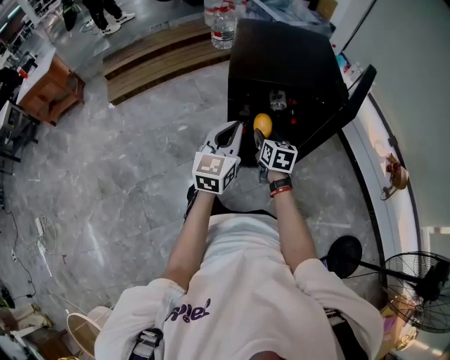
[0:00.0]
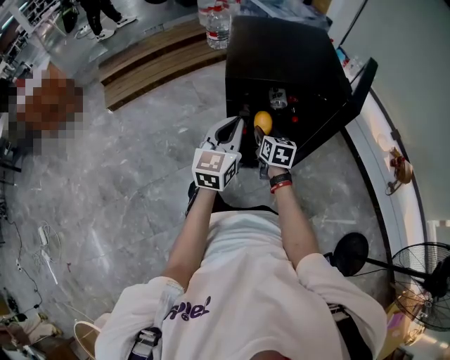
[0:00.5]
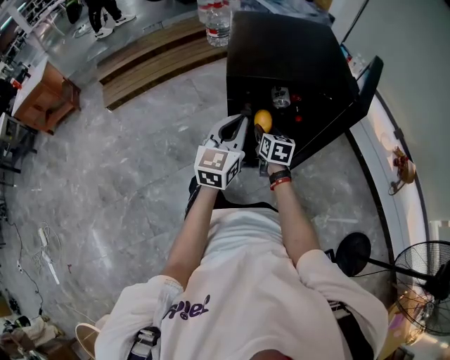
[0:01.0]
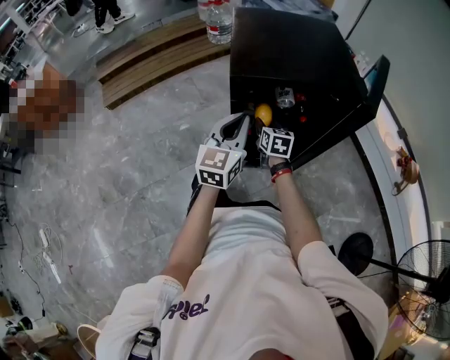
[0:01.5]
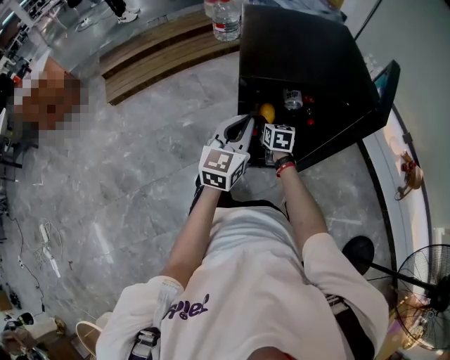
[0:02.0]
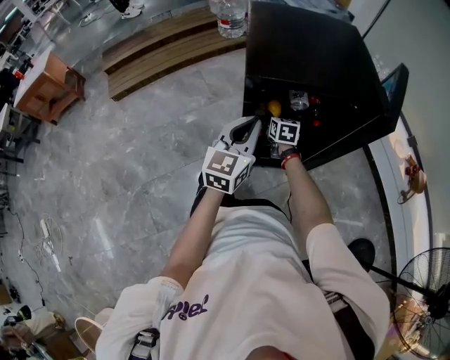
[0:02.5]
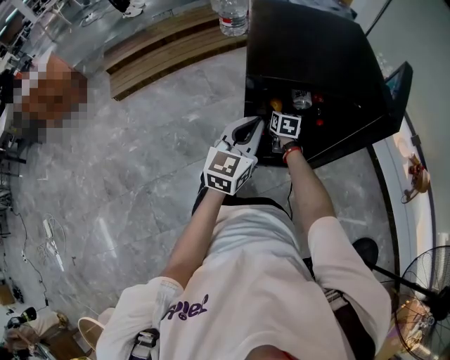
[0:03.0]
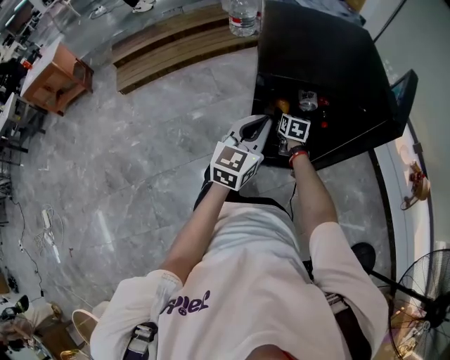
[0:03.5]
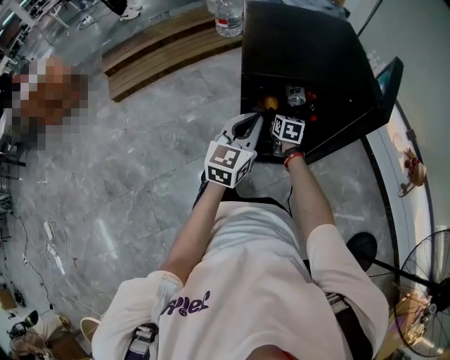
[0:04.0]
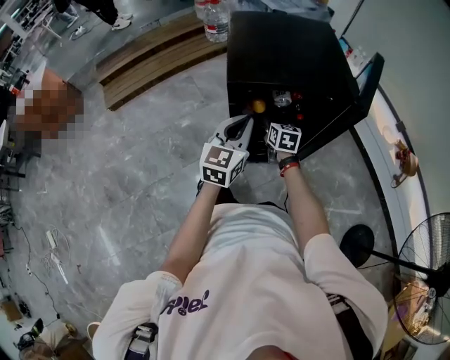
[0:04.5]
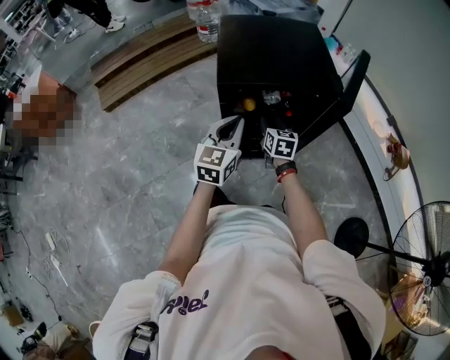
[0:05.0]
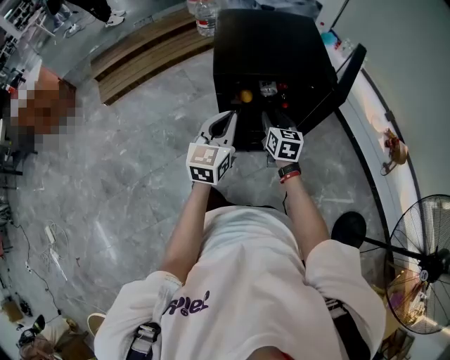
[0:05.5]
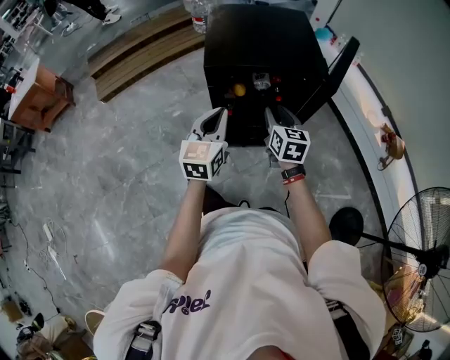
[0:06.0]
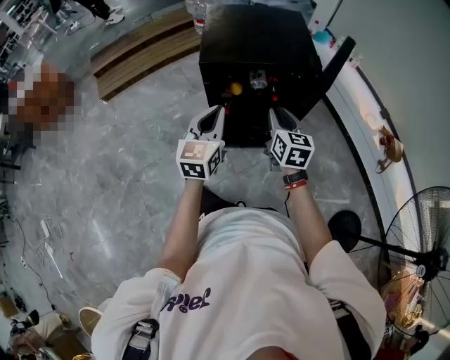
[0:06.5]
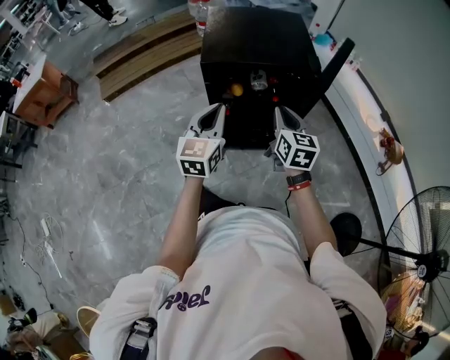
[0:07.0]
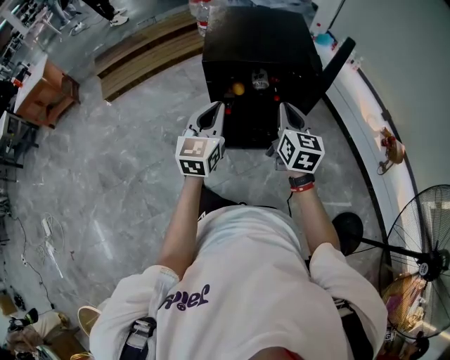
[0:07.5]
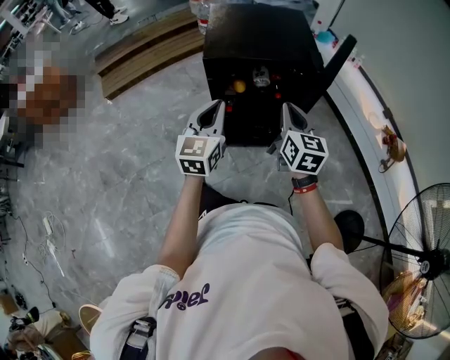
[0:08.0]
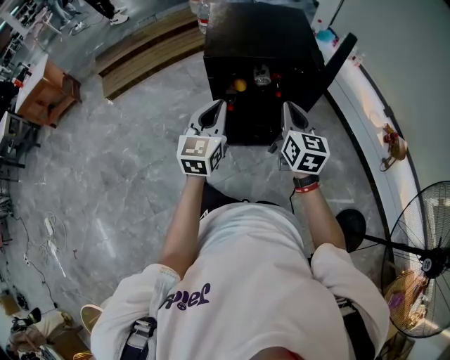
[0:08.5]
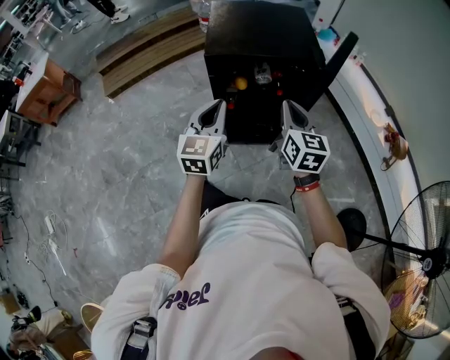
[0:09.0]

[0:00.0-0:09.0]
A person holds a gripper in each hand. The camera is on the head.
0:00.0 to 0:02.0: The left gripper moves forward and downward, some 10 cm. The right gripper travels forward and downward by roughly 20 cm.
0:02.0 to 0:04.5: The right gripper goes approximately 5 cm upward, while the left gripper changes place by about 5 cm.
0:04.5 to 0:07.0: The right gripper is displaced upward, backward and to the right by some 30 cm, and closes. Meanwhile the left gripper moves backward and upward, some 10 cm.
0:07.0 to 0:09.0: There are only small adjustments of the grippers.

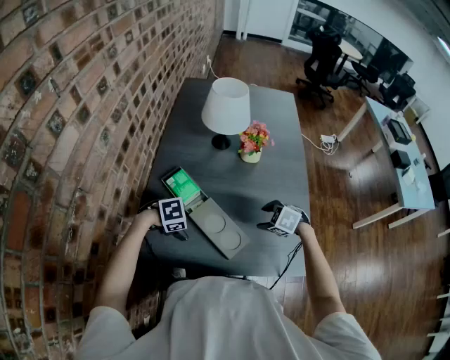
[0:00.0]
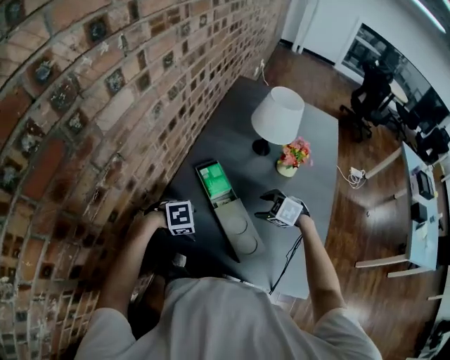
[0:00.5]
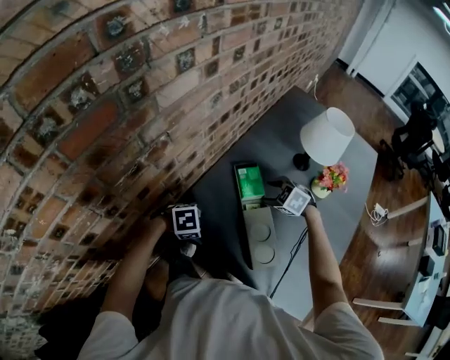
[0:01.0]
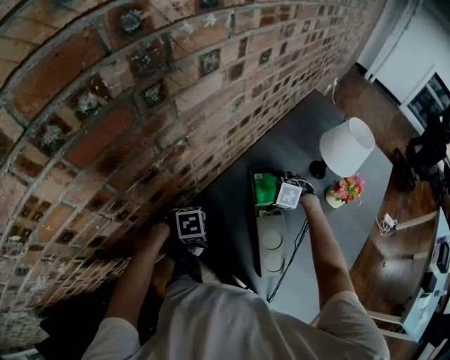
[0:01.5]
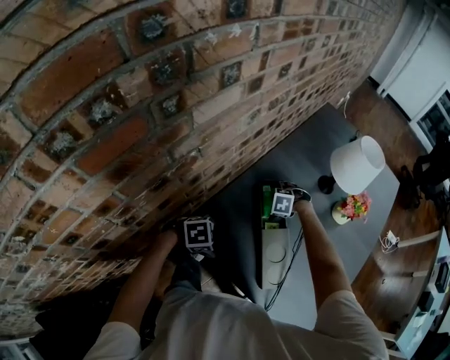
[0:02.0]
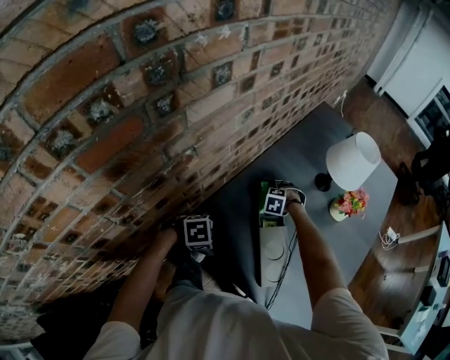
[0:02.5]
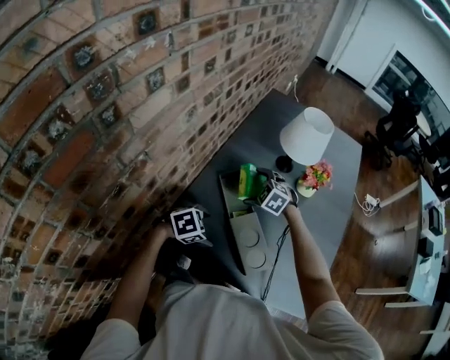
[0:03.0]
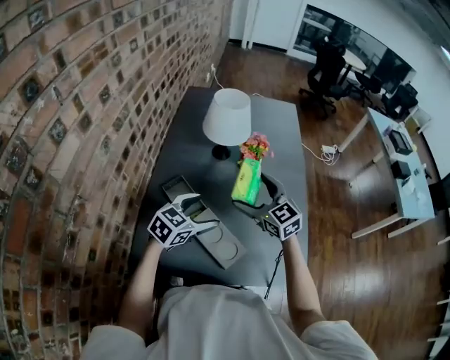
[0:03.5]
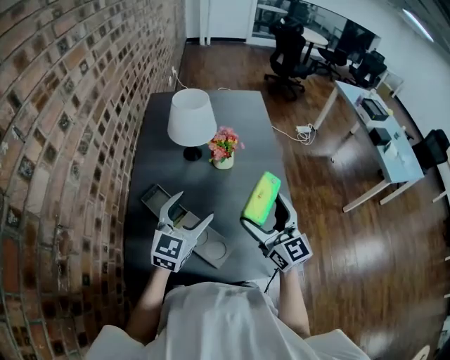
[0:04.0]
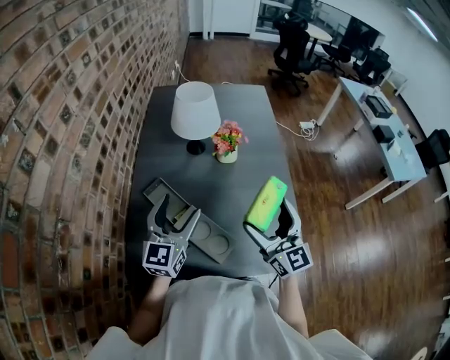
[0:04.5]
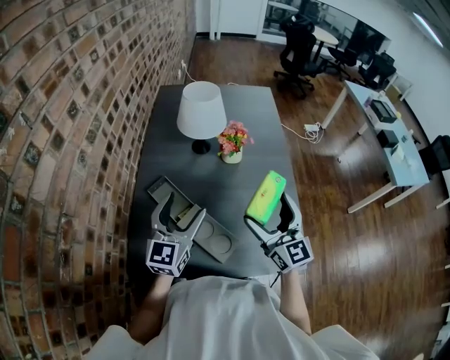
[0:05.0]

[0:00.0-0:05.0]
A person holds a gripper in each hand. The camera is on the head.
0:00.0 to 0:02.5: The right gripper moves roughly 35 cm, rolls counterclockwise, seen from behind, by some 50 degrees, and opens up, while the left gripper moves approximately 15 cm, and swivels about 30 degrees.
0:02.5 to 0:05.0: The right gripper changes place by approximately 50 cm, and tips its fingers upward by about 80 degrees; the left gripper travels upward by approximately 25 cm, and points its fingers some 60 degrees further upward.

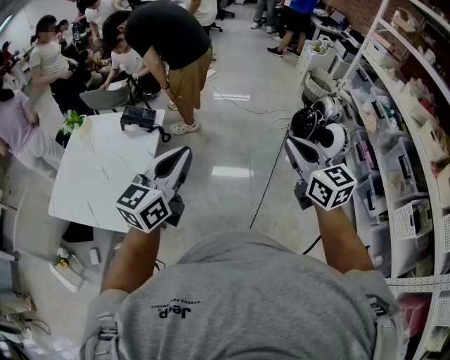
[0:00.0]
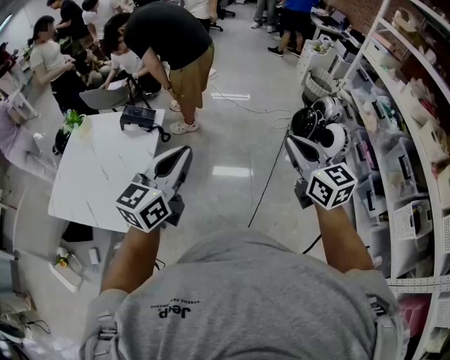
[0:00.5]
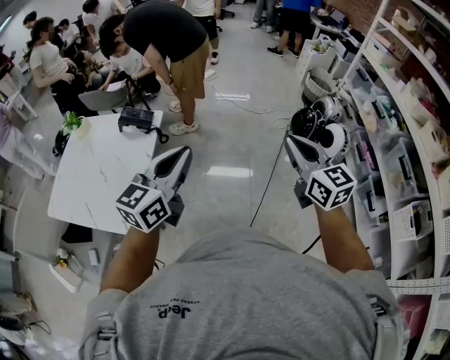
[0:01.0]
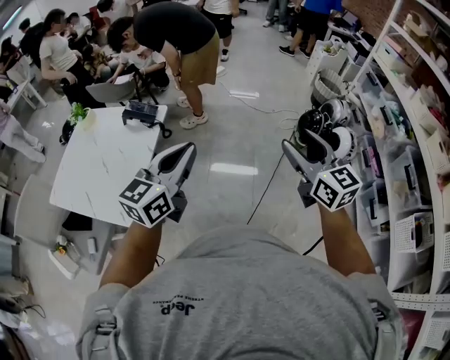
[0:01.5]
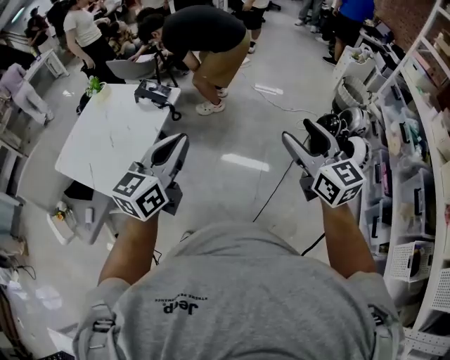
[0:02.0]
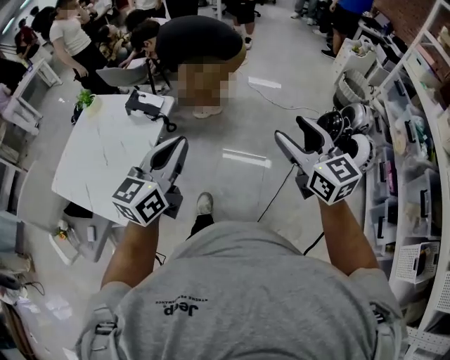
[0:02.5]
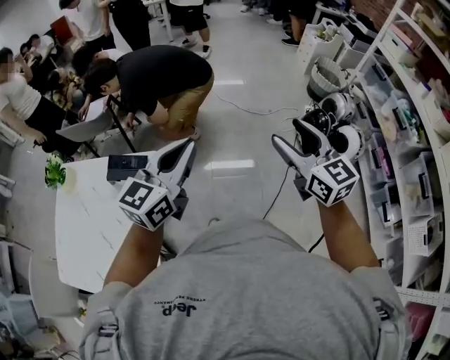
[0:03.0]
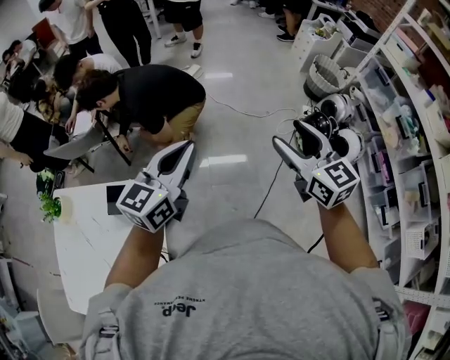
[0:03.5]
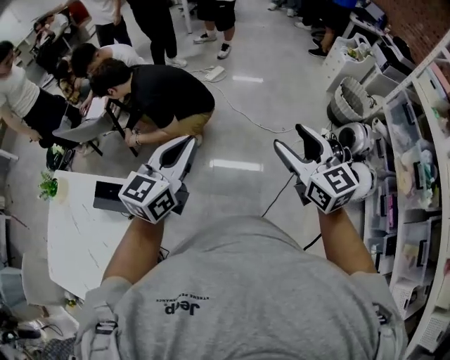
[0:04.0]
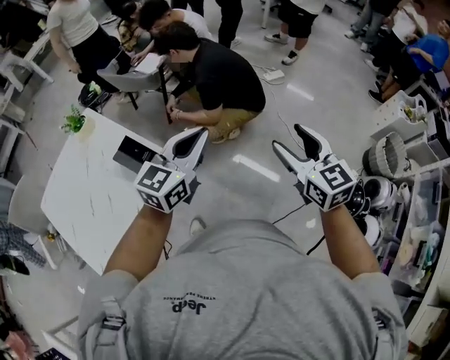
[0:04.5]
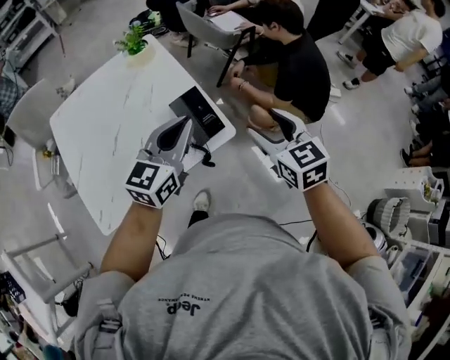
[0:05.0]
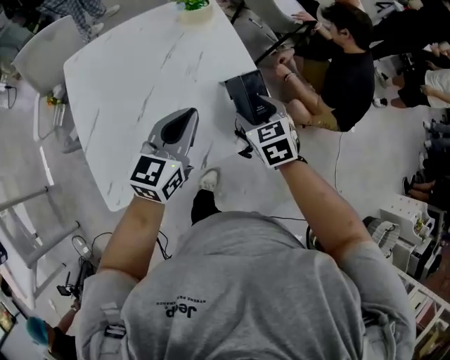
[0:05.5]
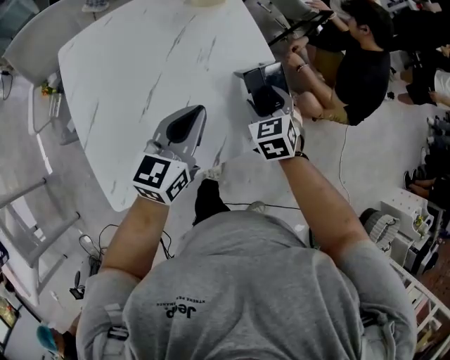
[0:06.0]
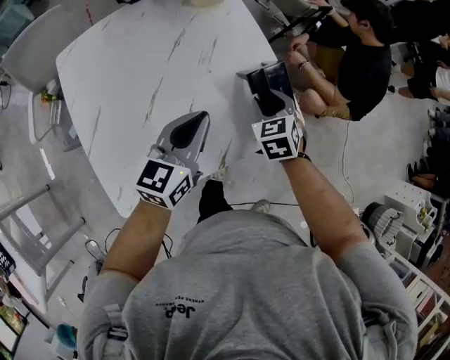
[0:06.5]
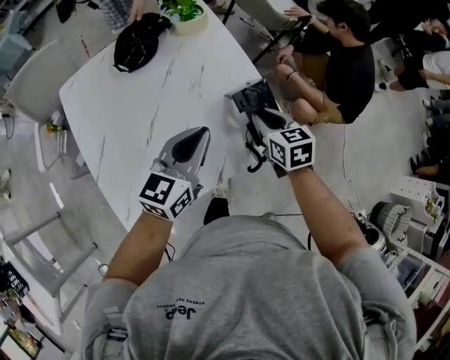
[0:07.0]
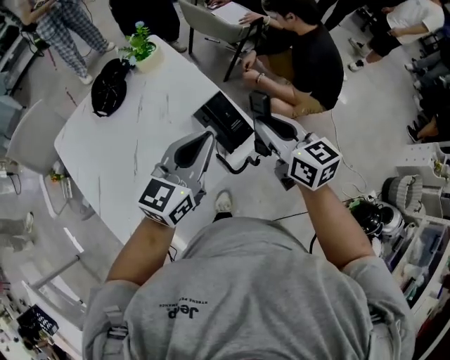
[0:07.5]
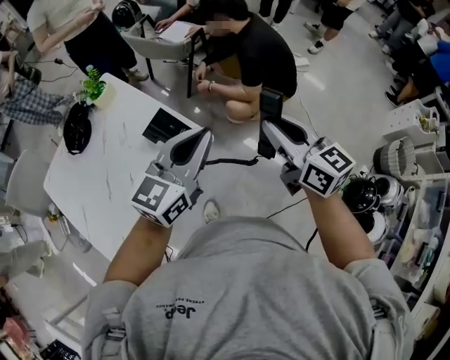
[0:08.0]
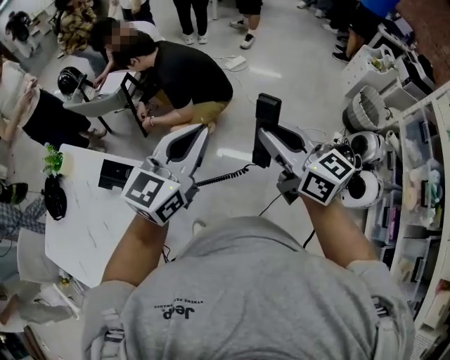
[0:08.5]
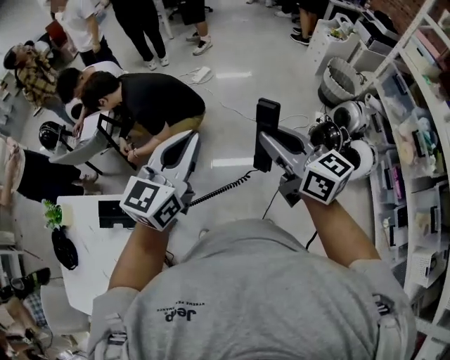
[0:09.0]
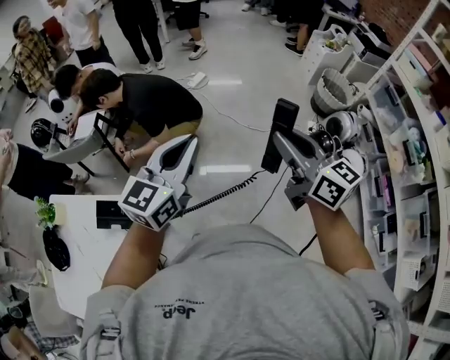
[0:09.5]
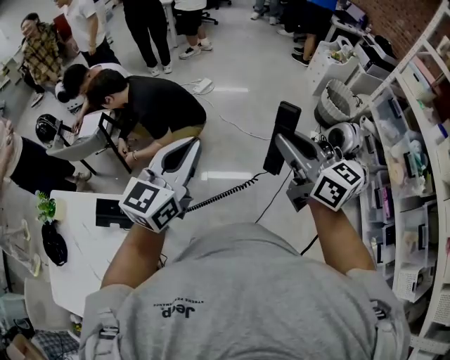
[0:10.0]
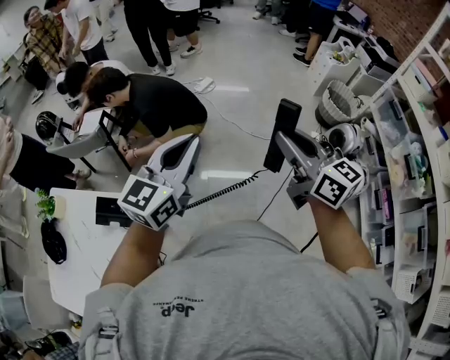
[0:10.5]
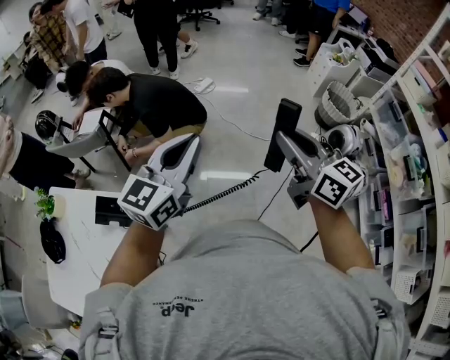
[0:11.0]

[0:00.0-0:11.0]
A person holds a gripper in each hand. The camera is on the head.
0:00.0 to 0:02.0: Both grippers travel together to the right, some 5 cm. The right gripper opens its fingers.
0:02.0 to 0:03.5: Both grippers are carried forward, about 50 cm. The left gripper changes its angle by about 20 degrees.
0:03.5 to 0:05.5: The two grippers travel together, approximately 50 cm. The right gripper tips its fingers downward by about 40 degrees. The left gripper turns by about 70 degrees.
0:05.5 to 0:07.5: The right gripper shifts approximately 15 cm upward and to the right, changes its angle by roughly 40 degrees, and closes its fingers; the left gripper travels to the right and upward by roughly 10 cm, and rotates roughly 20 degrees.
0:07.5 to 0:09.0: Both grippers are carried approximately 50 cm. The left gripper changes its angle by roughly 50 degrees; the right gripper swivels roughly 50 degrees.
0:09.0 to 0:11.0: The right gripper changes place by some 5 cm.

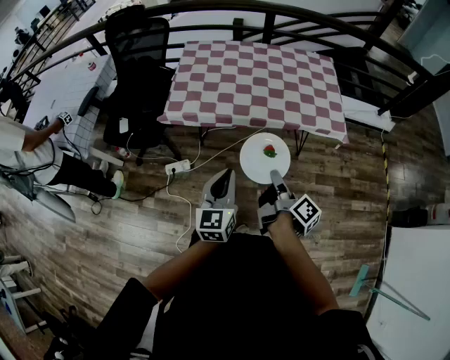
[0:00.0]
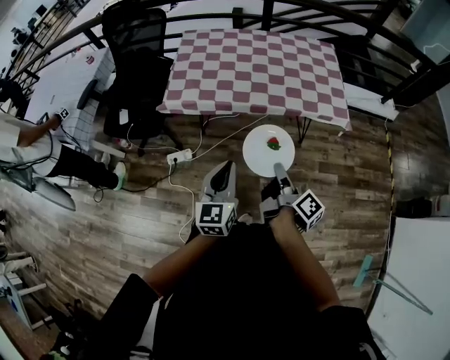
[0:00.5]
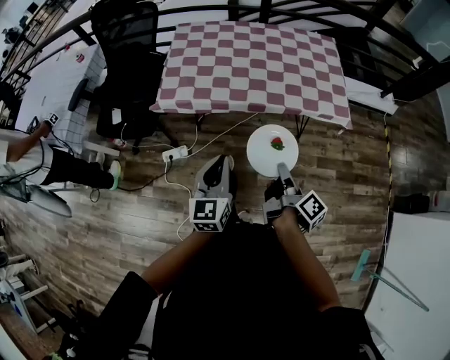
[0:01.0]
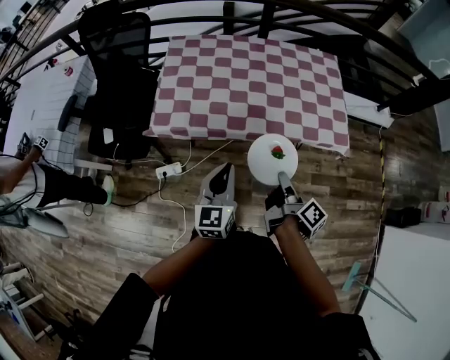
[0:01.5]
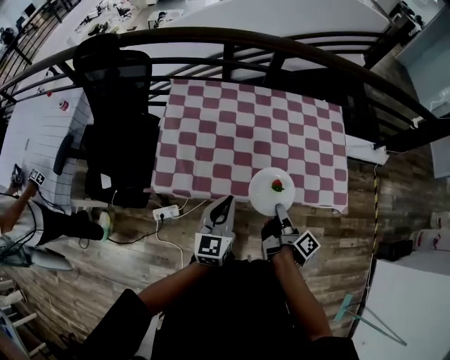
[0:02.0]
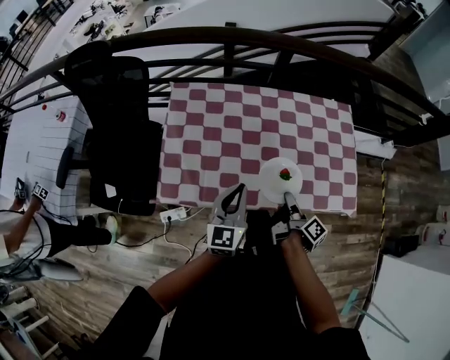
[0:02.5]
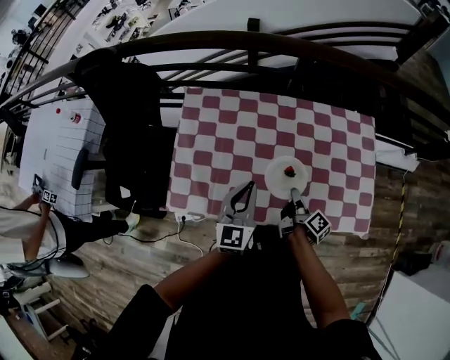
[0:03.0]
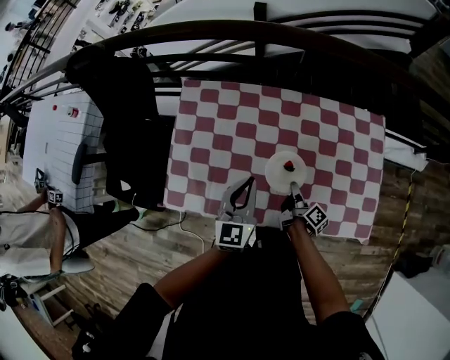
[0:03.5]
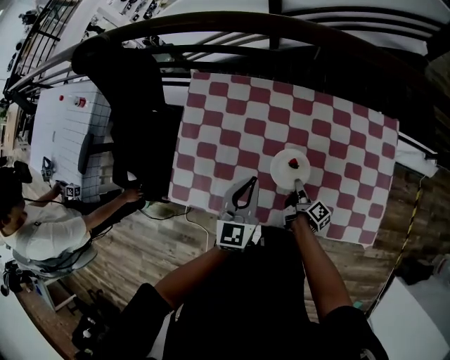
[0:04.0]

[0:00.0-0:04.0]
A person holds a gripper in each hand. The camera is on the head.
0:00.0 to 0:02.0: The left gripper ends up roughly 35 cm from where it was.
0:02.0 to 0:04.0: The left gripper changes place by roughly 25 cm.
